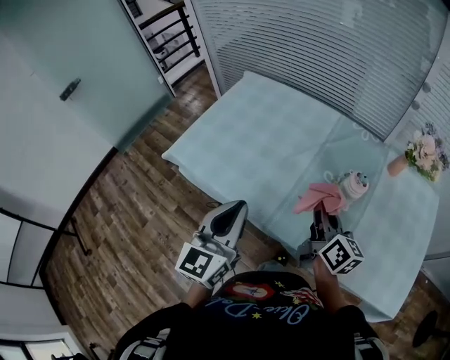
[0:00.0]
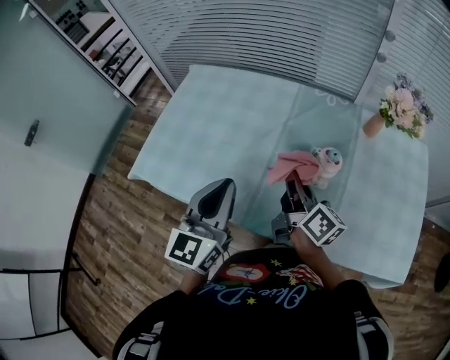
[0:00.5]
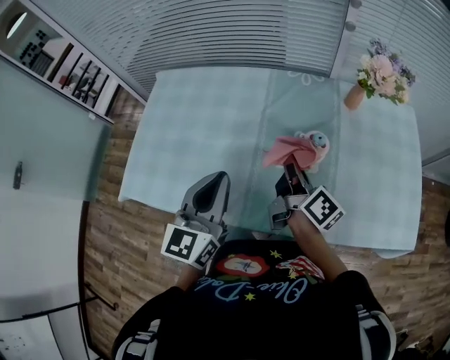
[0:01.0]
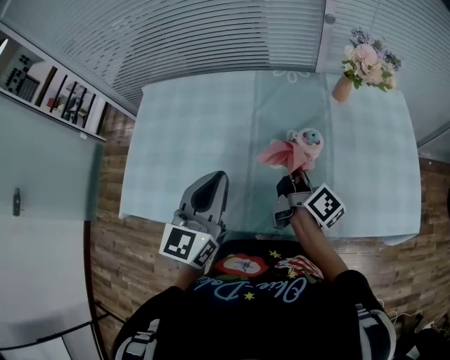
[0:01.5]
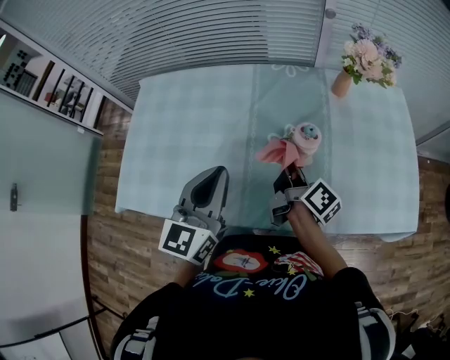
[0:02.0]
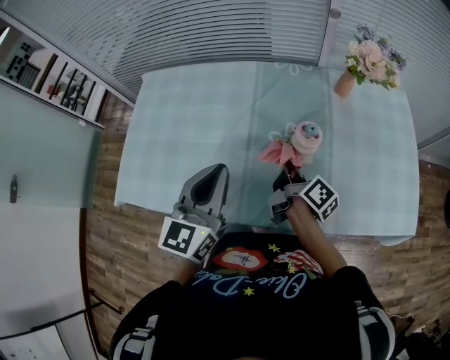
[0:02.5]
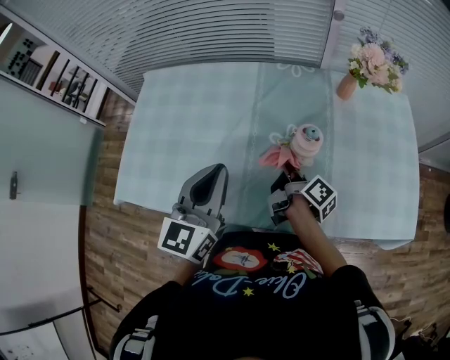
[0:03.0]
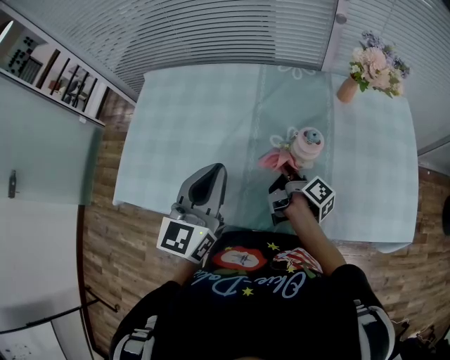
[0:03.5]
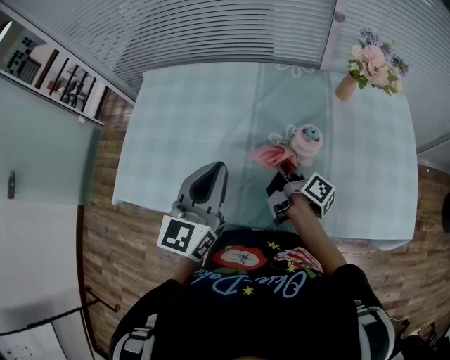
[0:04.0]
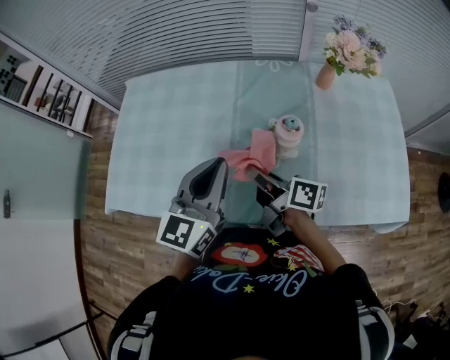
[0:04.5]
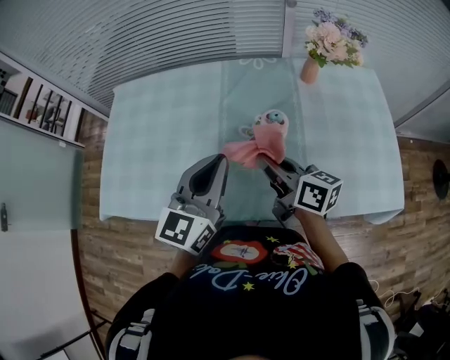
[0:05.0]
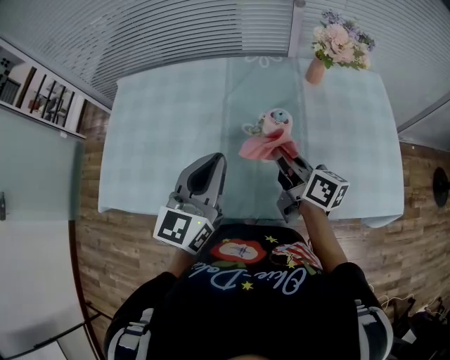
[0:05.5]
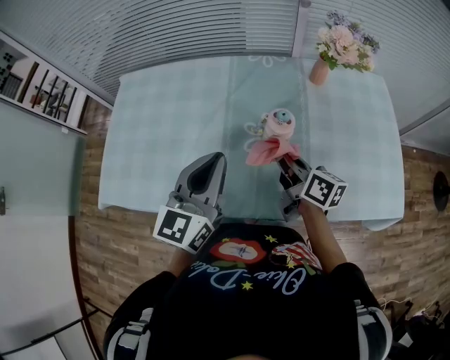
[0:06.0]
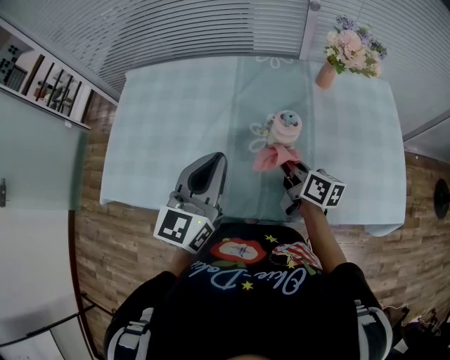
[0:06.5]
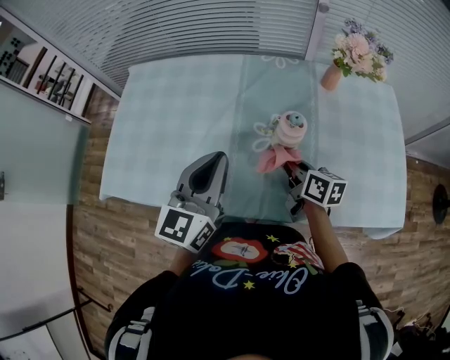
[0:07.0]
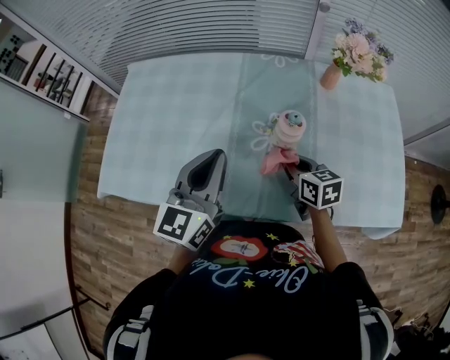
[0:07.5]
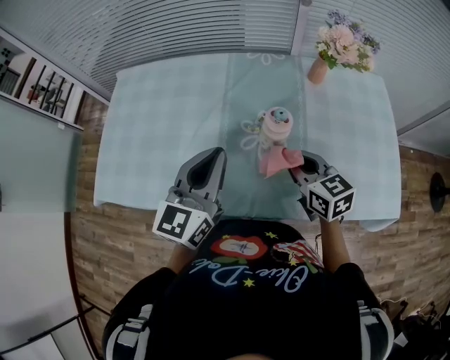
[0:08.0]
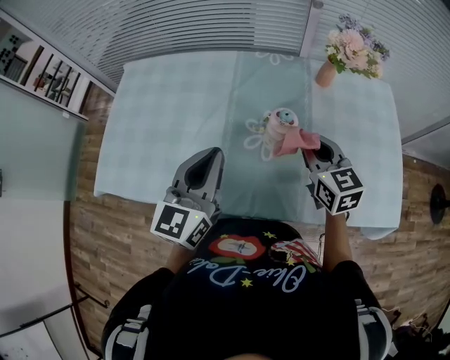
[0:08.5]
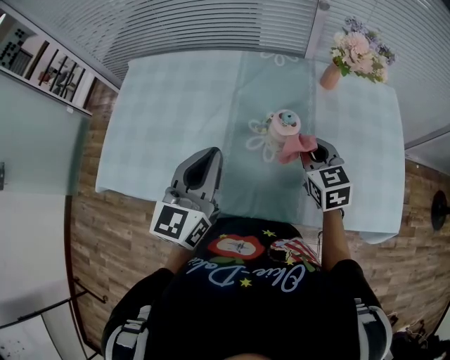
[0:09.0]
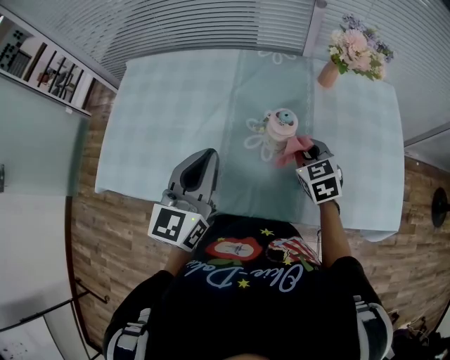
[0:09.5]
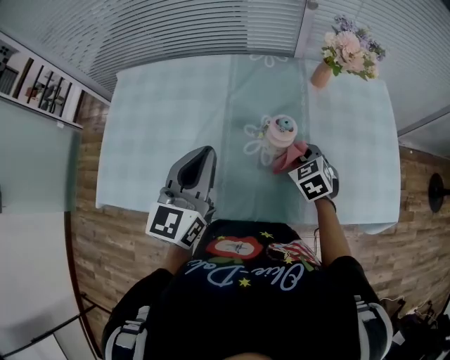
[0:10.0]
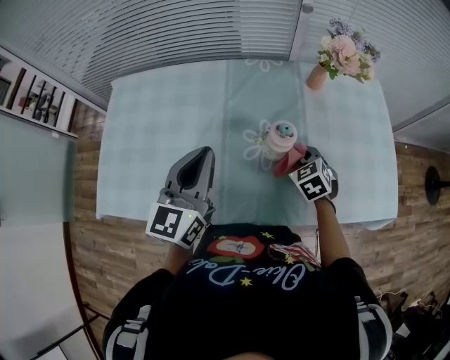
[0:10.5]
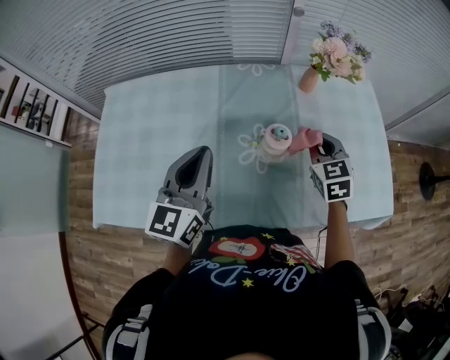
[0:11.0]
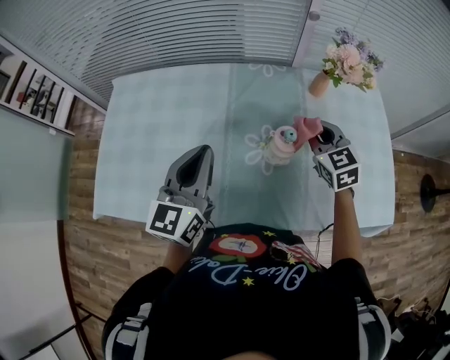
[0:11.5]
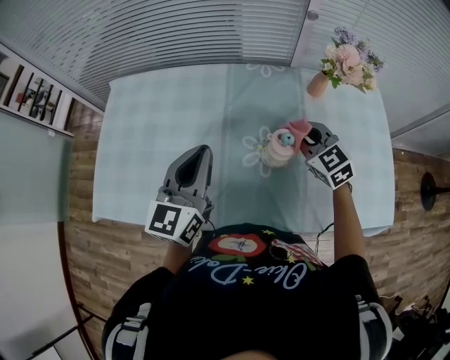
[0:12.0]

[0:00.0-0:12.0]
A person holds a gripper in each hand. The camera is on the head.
0:00.0 to 0:02.0: The left gripper ends up some 15 cm from where it was, and swivels approximately 30 degrees. Meanwhile the right gripper ends up about 10 cm from where it was, and turns by some 40 degrees.
0:02.0 to 0:04.0: The right gripper goes approximately 5 cm downward, and turns by roughly 20 degrees.
0:04.0 to 0:06.0: The left gripper goes roughly 5 cm to the right. Meanwhile the right gripper travels upward and to the right by some 10 cm, and swivels about 40 degrees.
0:06.0 to 0:08.0: The right gripper swivels about 40 degrees.
0:08.0 to 0:10.0: The right gripper is displaced downward by approximately 10 cm, and swivels roughly 40 degrees.
0:10.0 to 0:12.0: The right gripper travels upward and forward by about 10 cm, and turns by roughly 20 degrees.

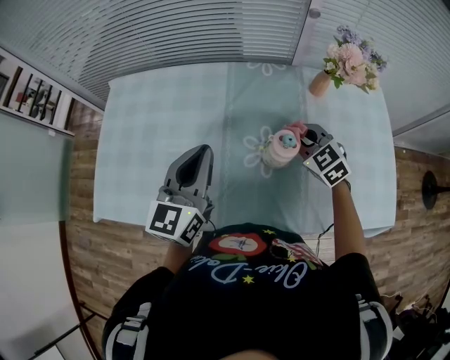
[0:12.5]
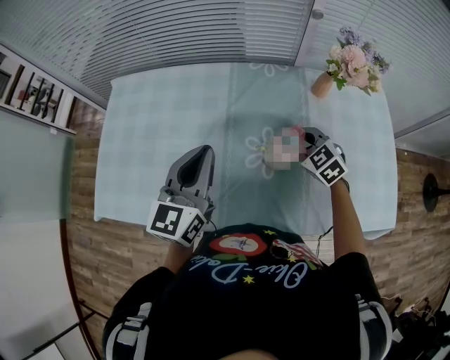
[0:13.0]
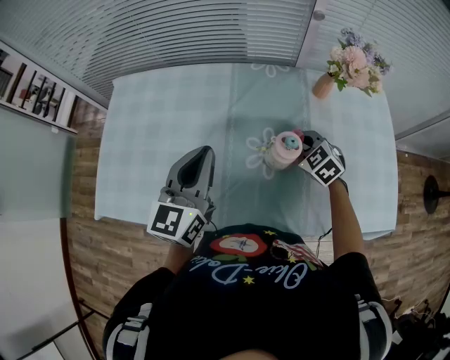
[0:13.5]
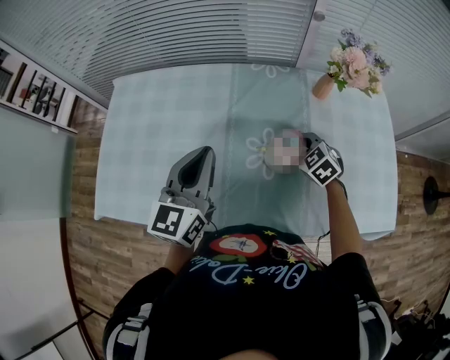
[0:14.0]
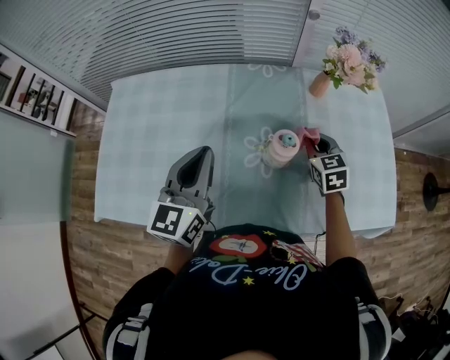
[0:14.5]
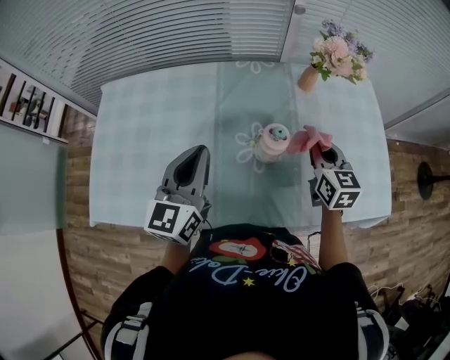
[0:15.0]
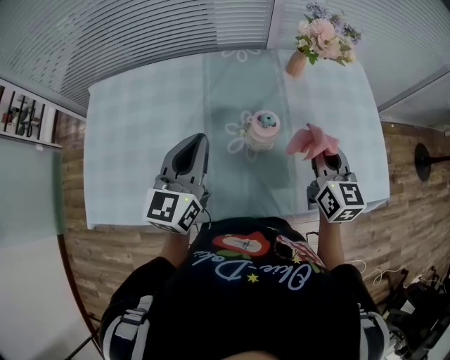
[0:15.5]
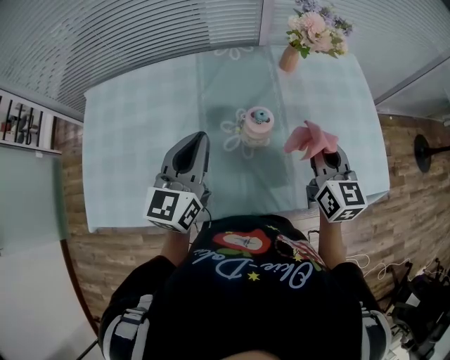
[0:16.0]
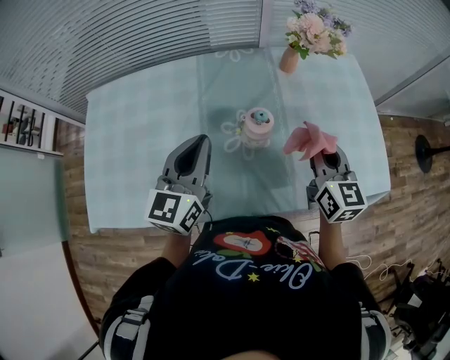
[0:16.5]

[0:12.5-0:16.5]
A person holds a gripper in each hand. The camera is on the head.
0:12.5 to 0:14.5: The right gripper heads to the right, covering approximately 5 cm, and rotates approximately 30 degrees.
0:14.5 to 0:16.5: The left gripper moves to the right, roughly 5 cm. Meanwhile the right gripper is displaced upward, backward and to the right by about 15 cm, and rotates some 30 degrees.

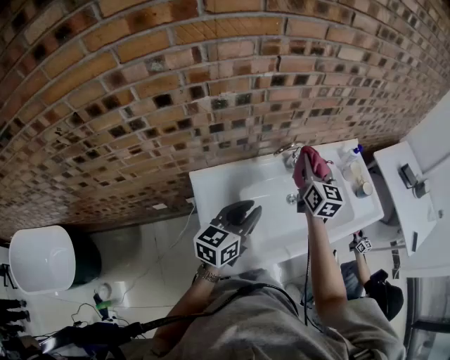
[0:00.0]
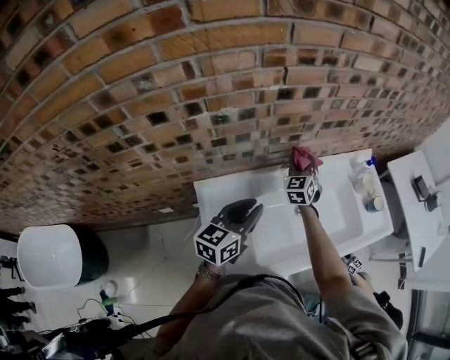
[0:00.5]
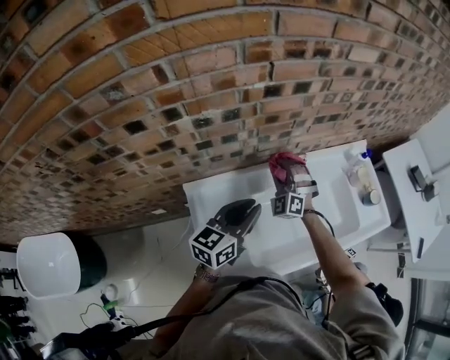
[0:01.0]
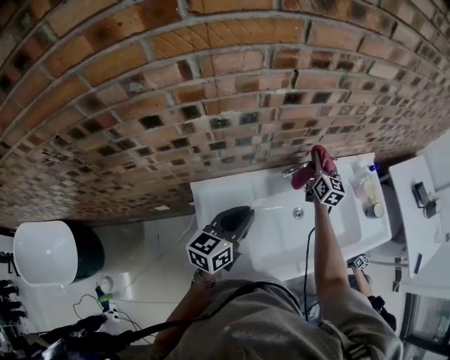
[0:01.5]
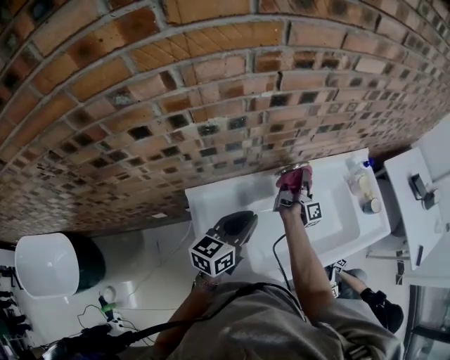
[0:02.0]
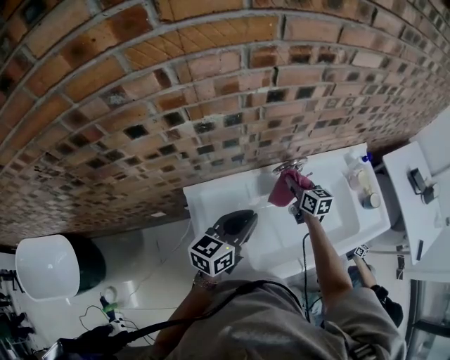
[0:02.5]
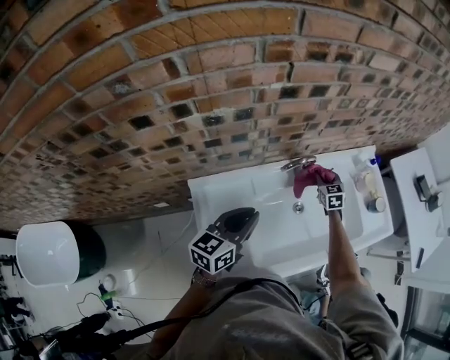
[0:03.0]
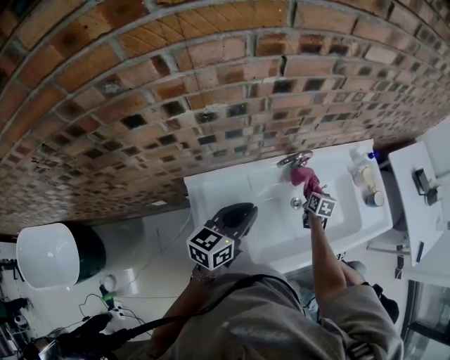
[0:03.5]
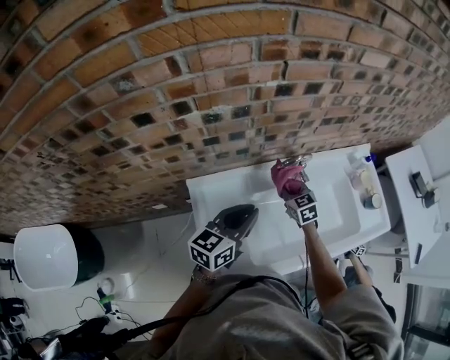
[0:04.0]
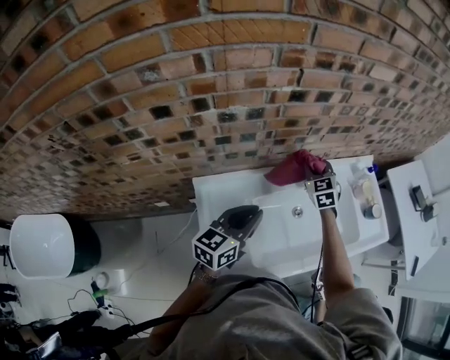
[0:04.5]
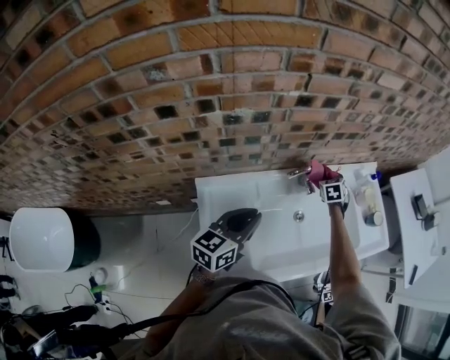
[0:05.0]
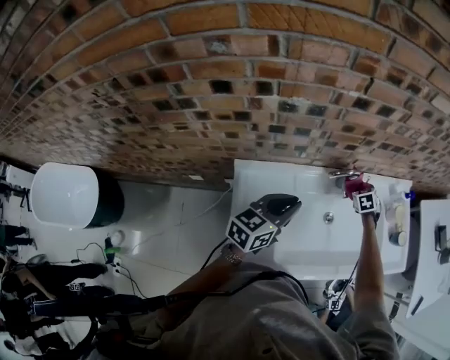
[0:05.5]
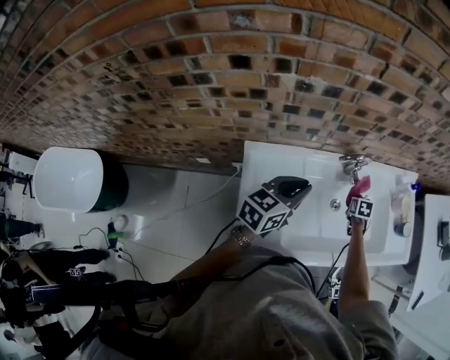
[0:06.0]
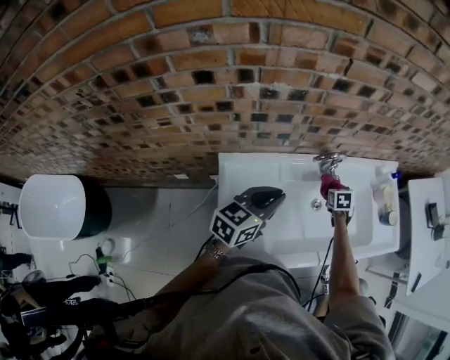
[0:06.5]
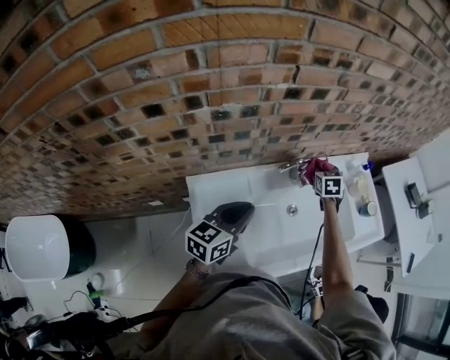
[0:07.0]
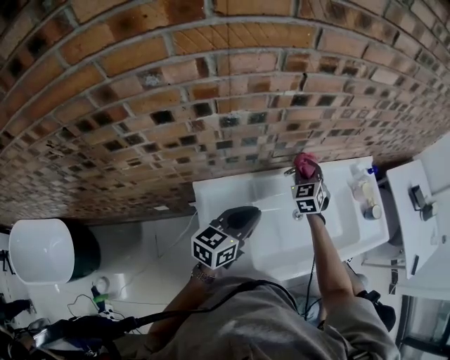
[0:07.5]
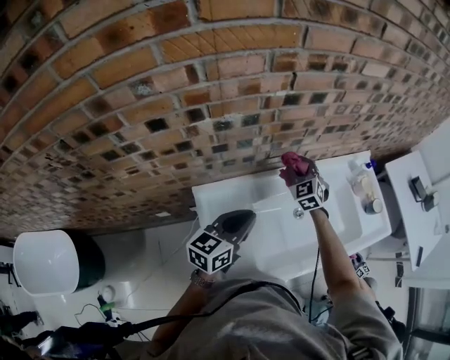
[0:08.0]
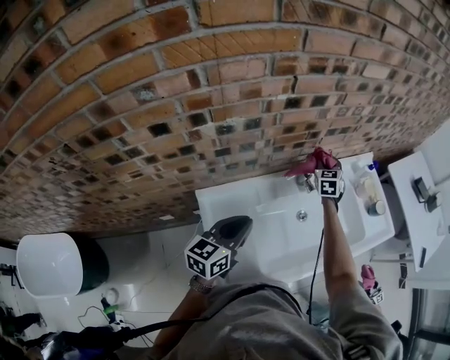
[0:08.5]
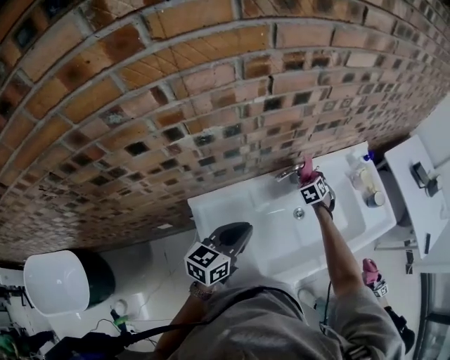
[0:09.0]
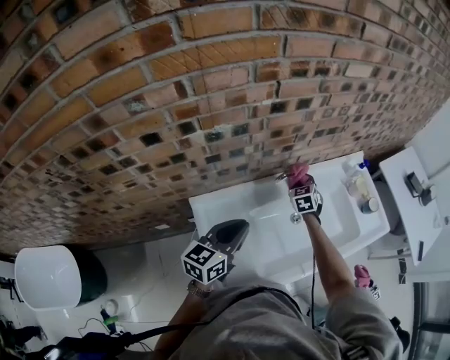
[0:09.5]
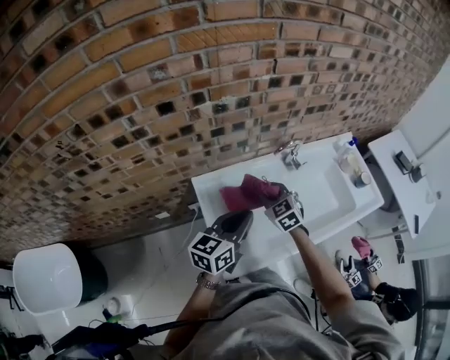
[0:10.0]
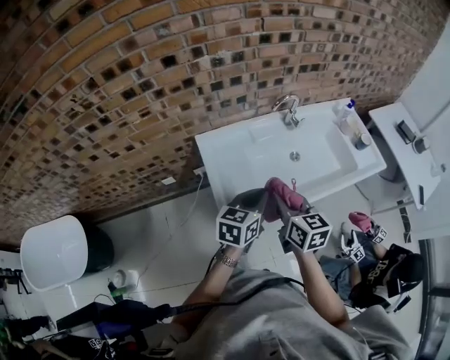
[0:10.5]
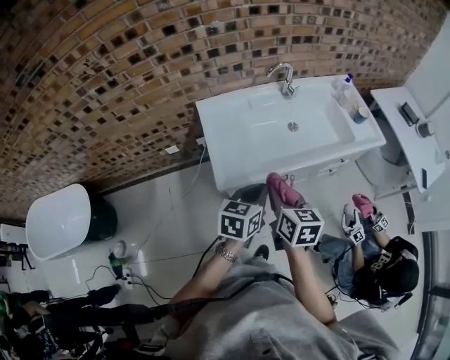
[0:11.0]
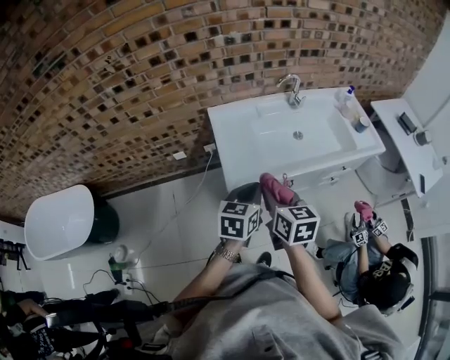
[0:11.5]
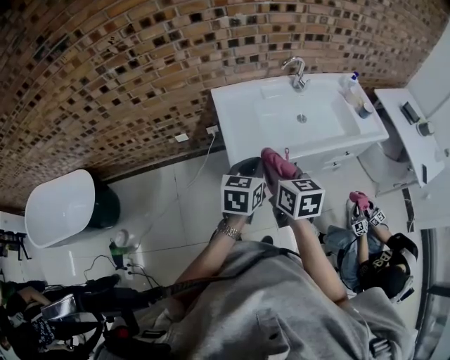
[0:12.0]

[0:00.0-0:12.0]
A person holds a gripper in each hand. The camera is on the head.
0:00.0 to 0:02.0: The left gripper moves forward, approximately 10 cm. Meanwhile the right gripper travels downward and forward by some 20 cm, and rolls clockwise, seen from behind, by some 80 degrees.
0:02.0 to 0:04.0: The right gripper goes left and right, roughly 15 cm each way, reversing 2 times, and rolls counterclockwise, seen from behind, by about 90 degrees.
0:04.0 to 0:06.0: The right gripper heads to the right and downward, covering about 20 cm, and rotates approximately 30 degrees.
0:06.0 to 0:08.0: The right gripper goes about 30 cm upward and to the left, and points its fingers approximately 40 degrees further upward.
0:08.0 to 0:10.0: The left gripper shifts about 10 cm backward. Meanwhile the right gripper goes roughly 20 cm backward, and swivels approximately 20 degrees.
0:10.0 to 0:12.0: Both grippers travel together backward, approximately 35 cm. The right gripper rotates some 40 degrees. The left gripper changes its angle by approximately 20 degrees.
